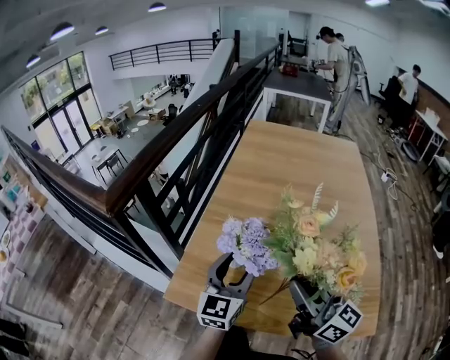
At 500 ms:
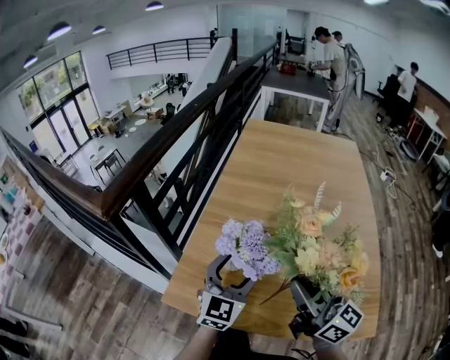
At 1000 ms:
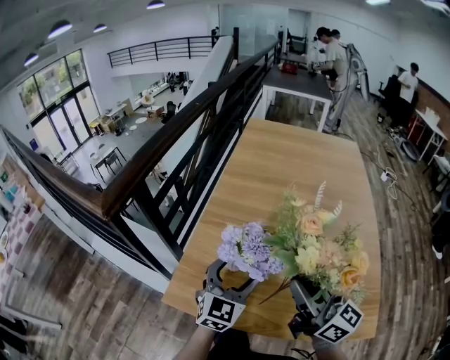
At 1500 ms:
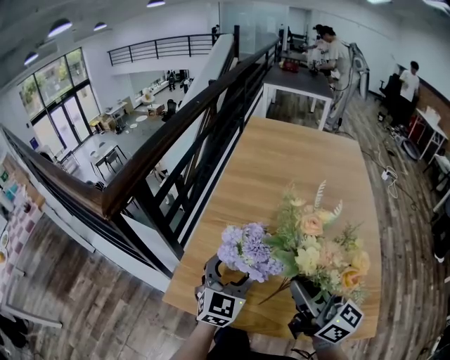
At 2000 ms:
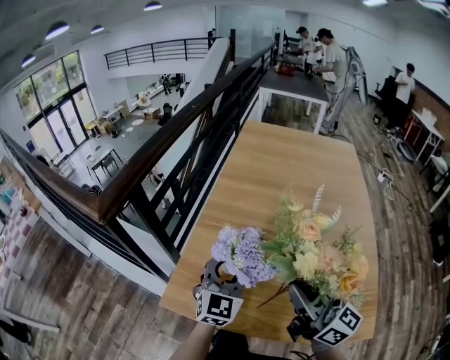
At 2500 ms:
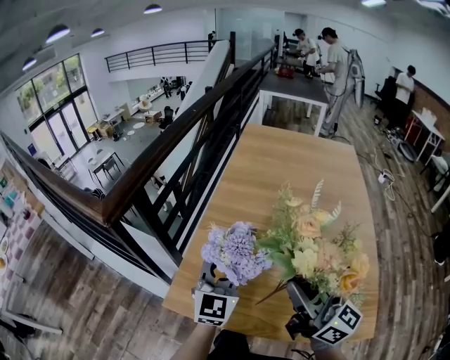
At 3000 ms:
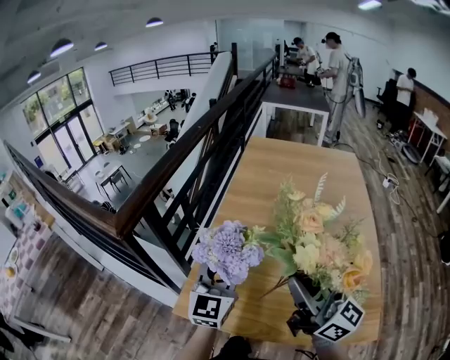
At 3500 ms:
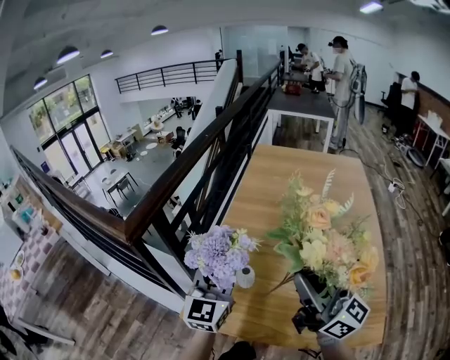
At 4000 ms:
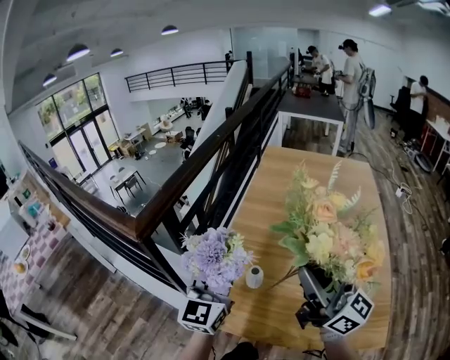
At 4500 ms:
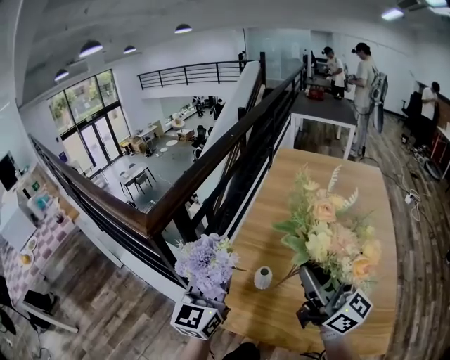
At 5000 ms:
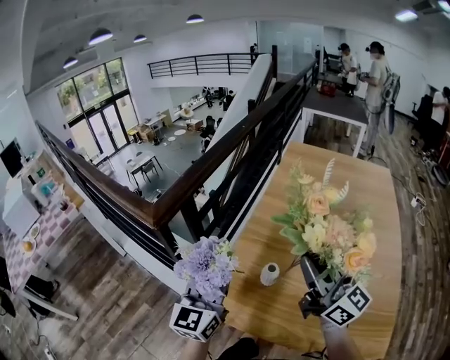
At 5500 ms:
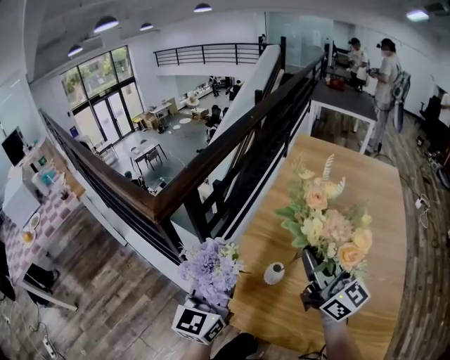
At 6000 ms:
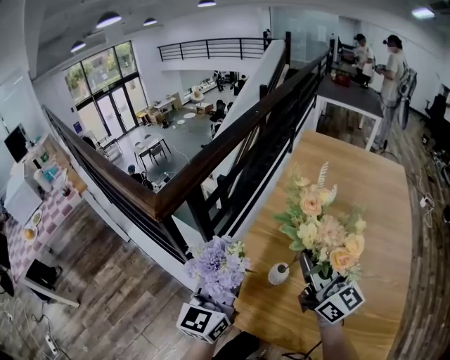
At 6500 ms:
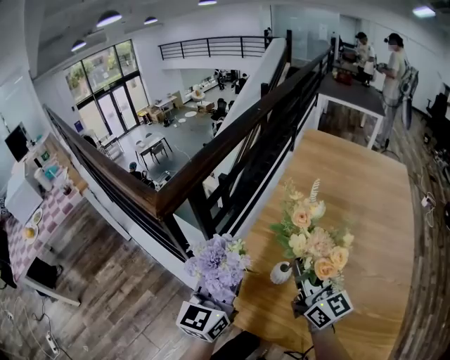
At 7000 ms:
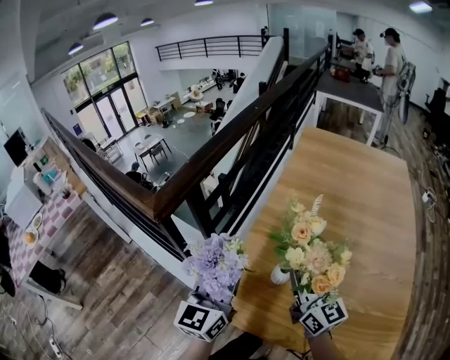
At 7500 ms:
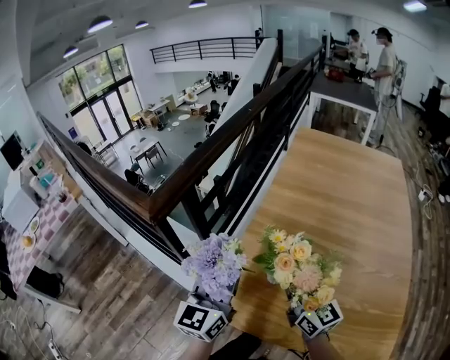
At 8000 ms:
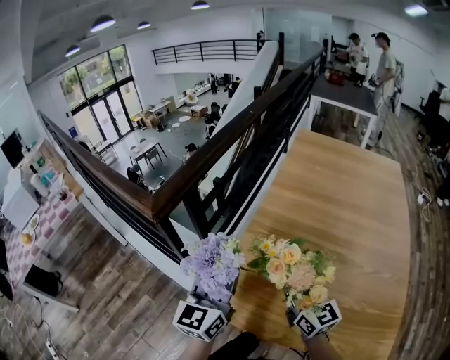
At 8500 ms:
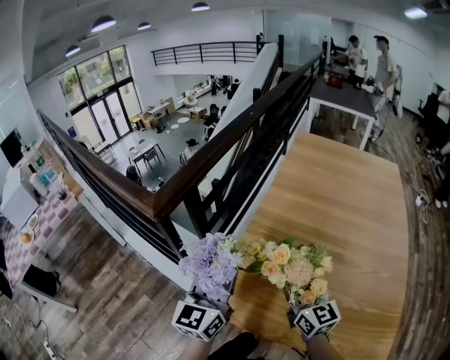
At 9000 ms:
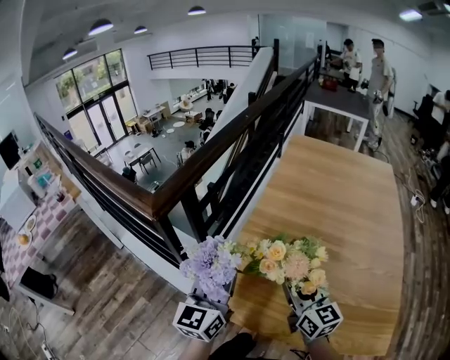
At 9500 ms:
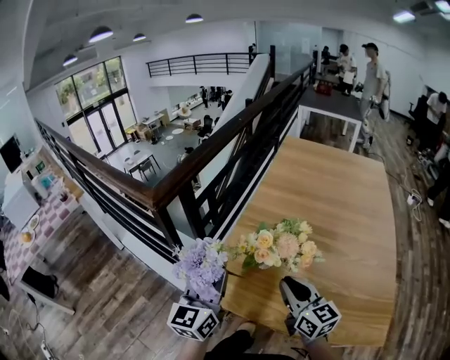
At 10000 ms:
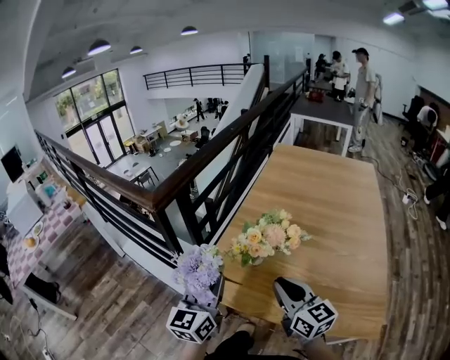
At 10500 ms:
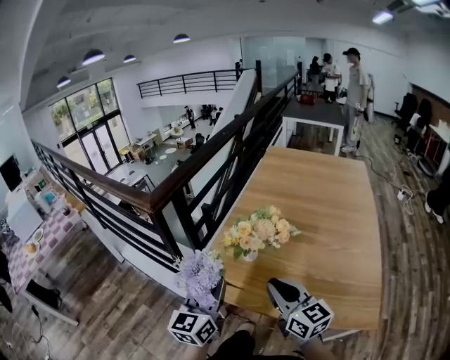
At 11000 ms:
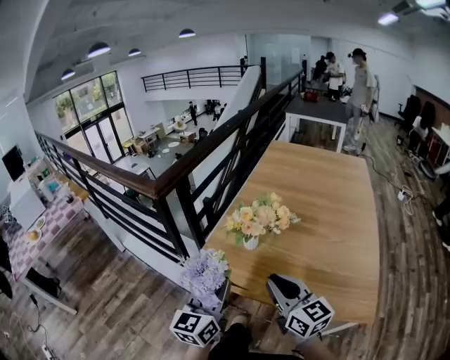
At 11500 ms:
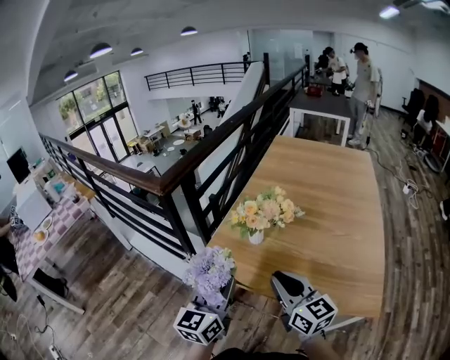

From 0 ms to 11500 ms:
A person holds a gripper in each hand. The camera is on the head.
From 0 ms to 2000 ms: The left gripper changes its angle by approximately 20 degrees.
From 2000 ms to 4000 ms: The left gripper goes approximately 15 cm upward and to the left, and swivels approximately 20 degrees. Meanwhile the right gripper moves upward, roughly 10 cm.
From 4000 ms to 6000 ms: The left gripper goes approximately 10 cm downward and to the left. Meanwhile the right gripper shifts roughly 15 cm forward and downward.
From 6000 ms to 7500 ms: The right gripper travels downward by some 10 cm.
From 7500 ms to 9500 ms: The two grippers go approximately 10 cm backward. The right gripper opens, then closes again.
From 9500 ms to 11500 ms: The grippers both shift backward by approximately 15 cm.

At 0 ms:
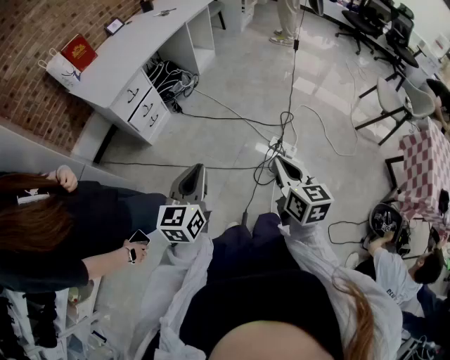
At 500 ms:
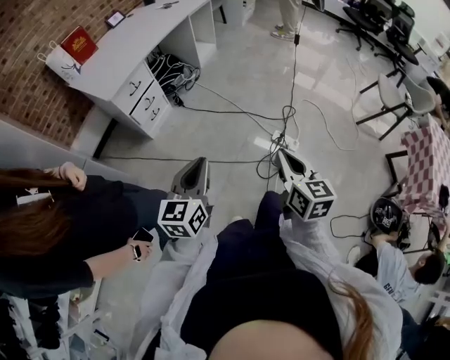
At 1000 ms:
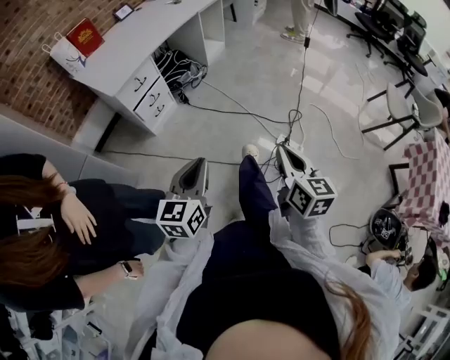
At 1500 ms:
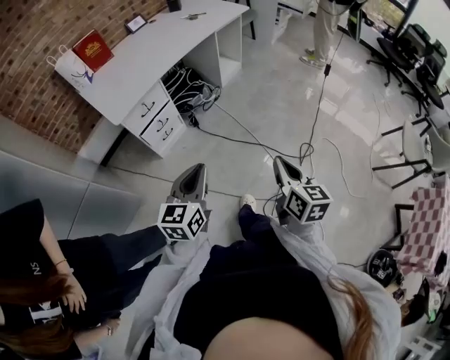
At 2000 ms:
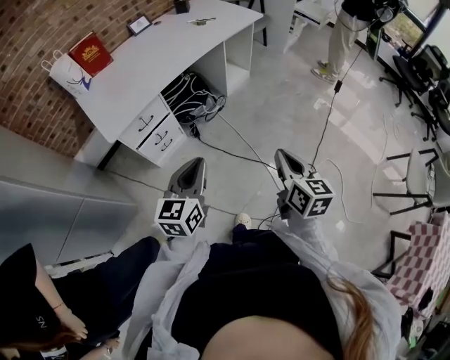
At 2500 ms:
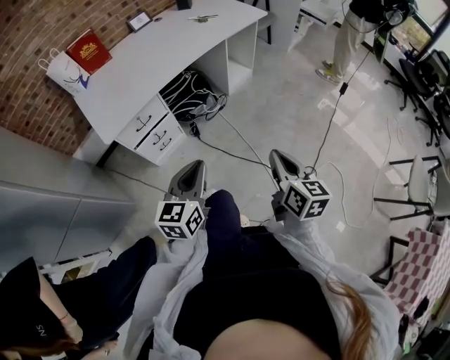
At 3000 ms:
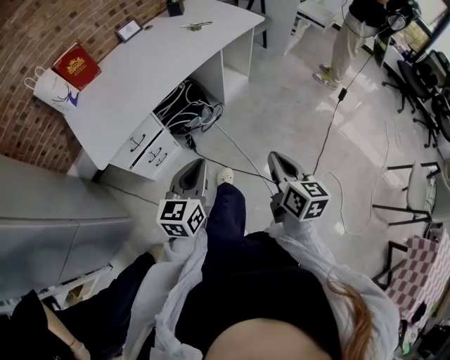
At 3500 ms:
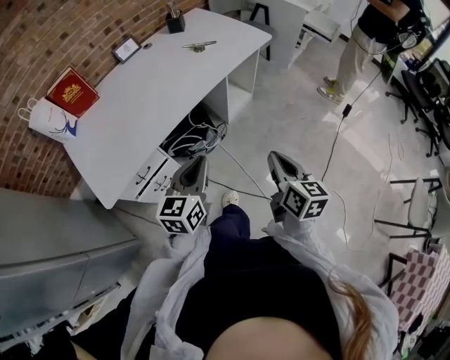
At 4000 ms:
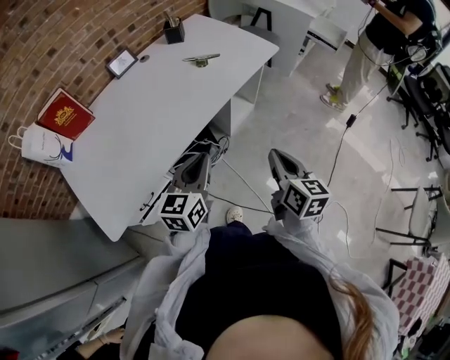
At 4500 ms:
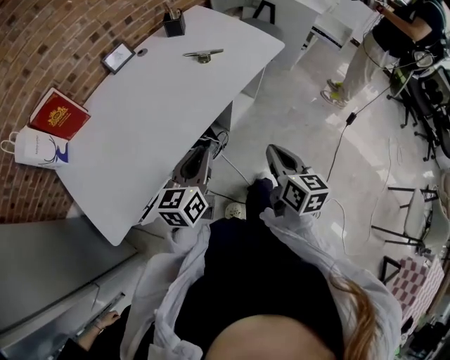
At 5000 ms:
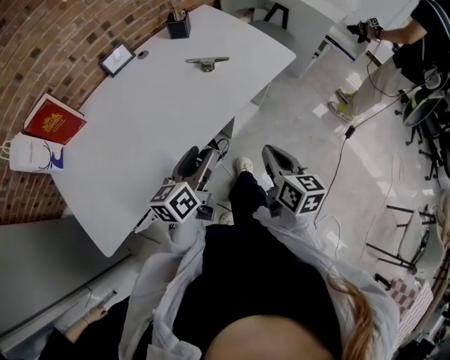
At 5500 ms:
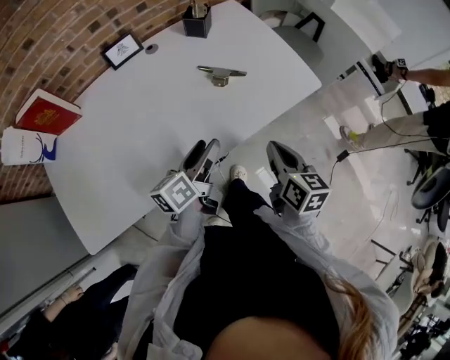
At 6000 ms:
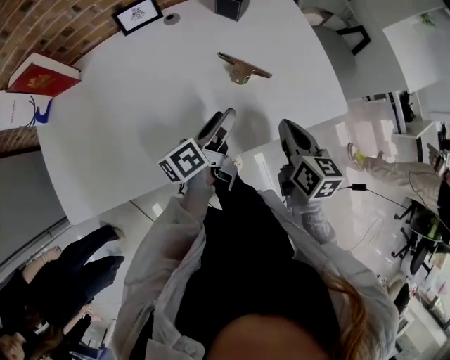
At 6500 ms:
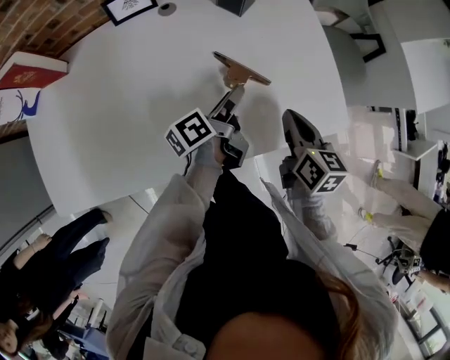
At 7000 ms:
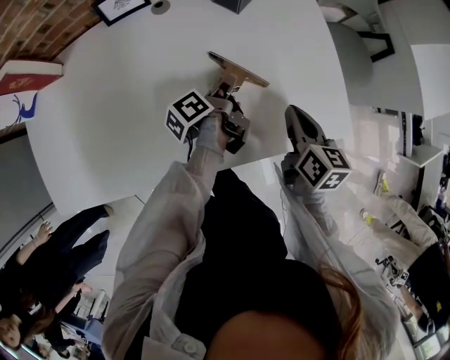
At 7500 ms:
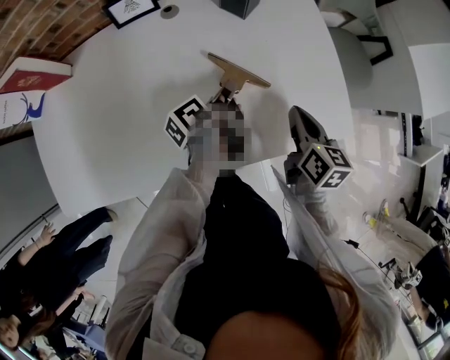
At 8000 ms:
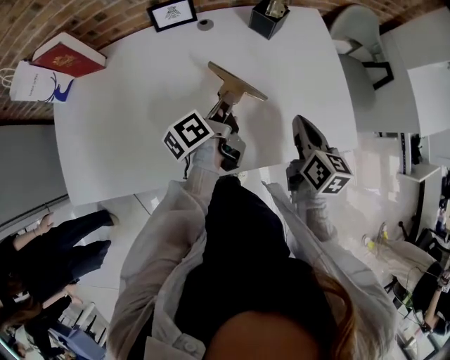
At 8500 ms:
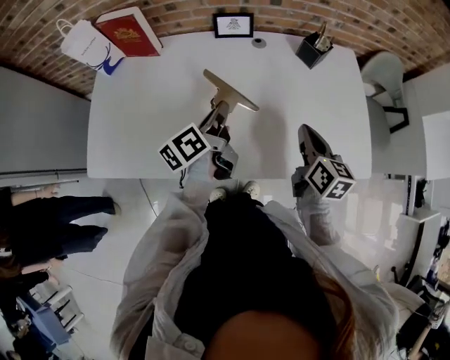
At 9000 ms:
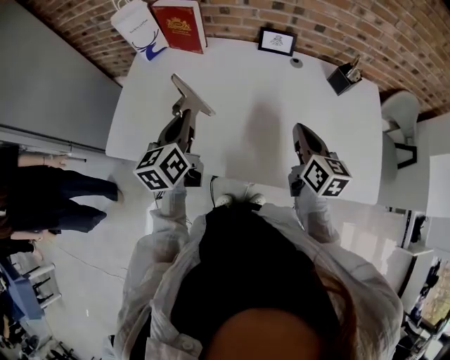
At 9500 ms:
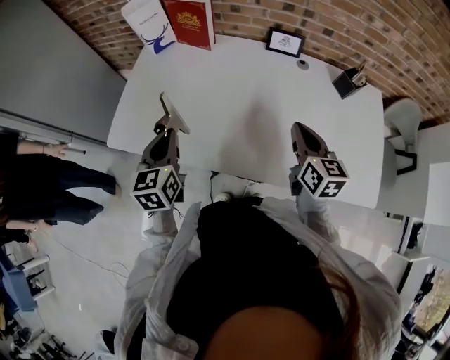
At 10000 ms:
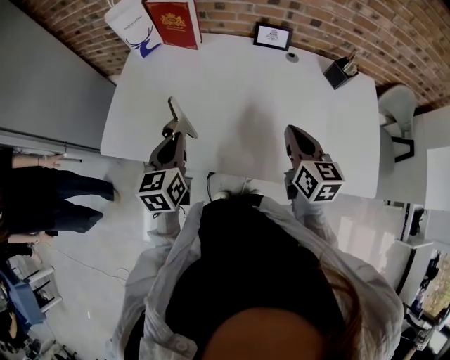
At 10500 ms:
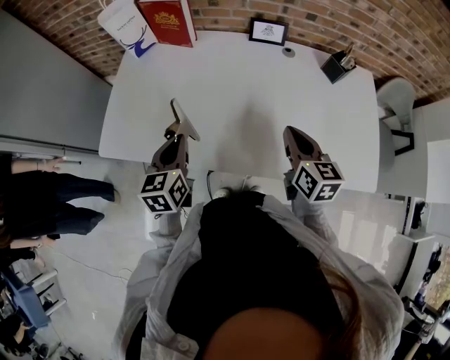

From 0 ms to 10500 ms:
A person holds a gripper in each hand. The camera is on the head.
From 0 ms to 2000 ms: The two grippers go about 35 cm forward.
From 2000 ms to 4000 ms: Both grippers travel together forward, approximately 40 cm.
From 4000 ms to 6500 ms: Both grippers are carried some 50 cm. The right gripper changes its angle by approximately 30 degrees. The left gripper twists roughly 70 degrees counterclockwise, seen from behind, and opens up.
From 6500 ms to 8500 ms: The left gripper moves to the left and upward, some 25 cm, rotates roughly 30 degrees, and closes its fingers. The right gripper is displaced to the left and upward by some 15 cm.
From 8500 ms to 10500 ms: The right gripper travels to the left by about 15 cm, while the left gripper shifts about 20 cm to the left and backward, and twists about 40 degrees clockwise, seen from behind.

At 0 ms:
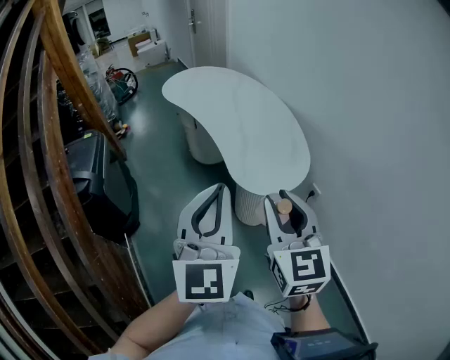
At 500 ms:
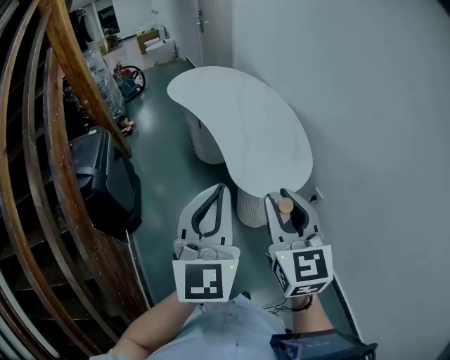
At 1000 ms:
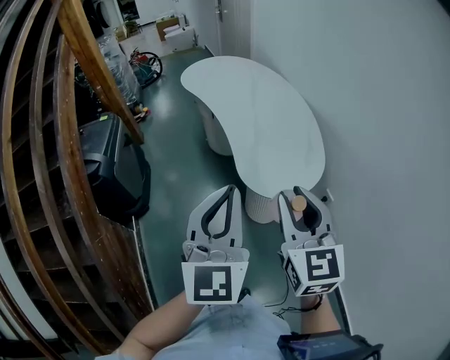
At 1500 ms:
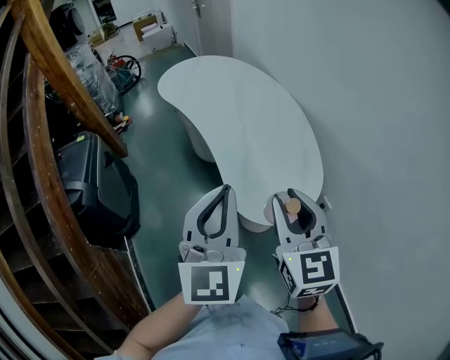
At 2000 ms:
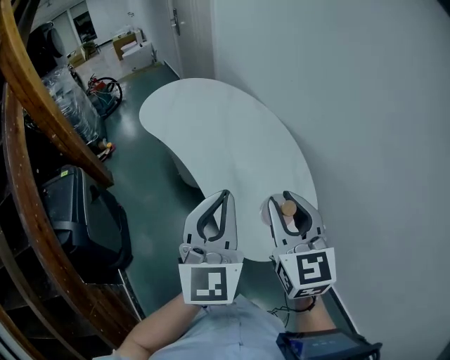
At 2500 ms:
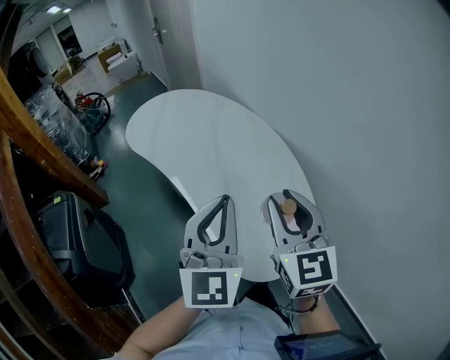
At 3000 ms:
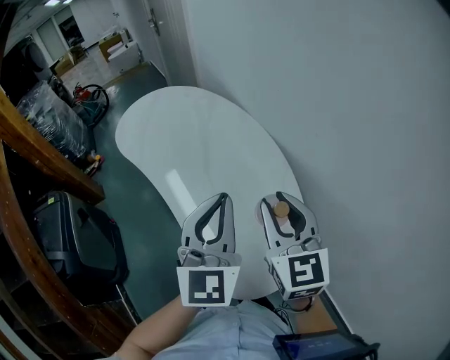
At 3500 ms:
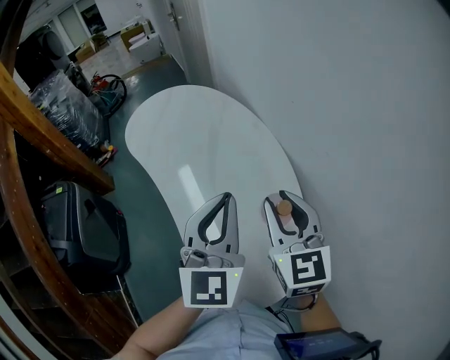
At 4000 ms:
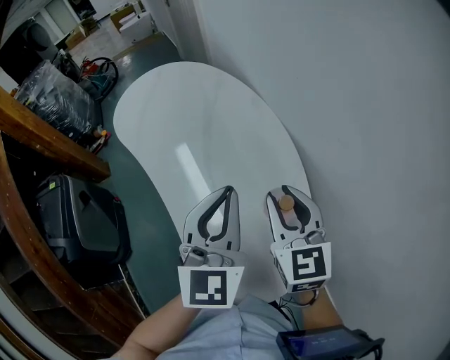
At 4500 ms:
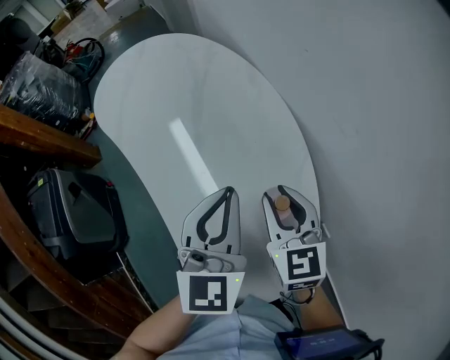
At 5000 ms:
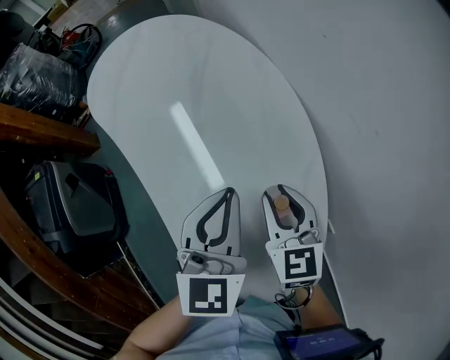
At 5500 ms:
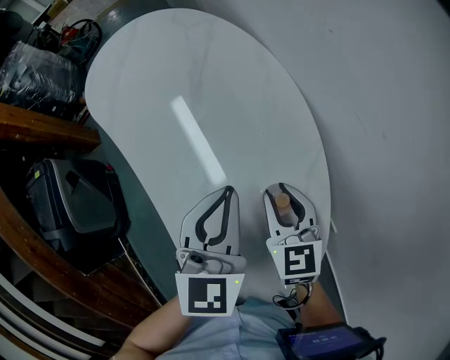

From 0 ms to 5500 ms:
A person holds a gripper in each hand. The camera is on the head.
From 0 ms to 2000 ms: The grippers both shift forward by about 20 cm.
From 2000 ms to 3500 ms: Both grippers travel together forward and to the right, about 15 cm.
From 3500 ms to 5500 ms: The grippers both shift downward by roughly 15 cm. The left gripper rotates about 30 degrees.
